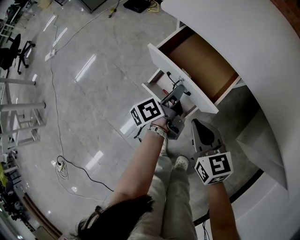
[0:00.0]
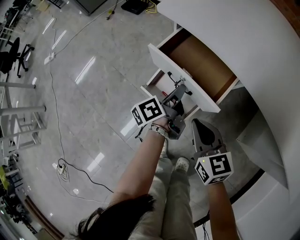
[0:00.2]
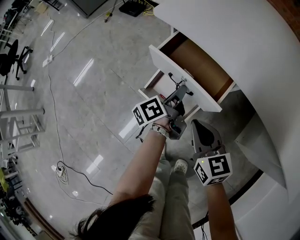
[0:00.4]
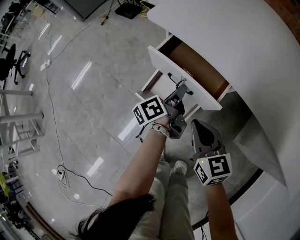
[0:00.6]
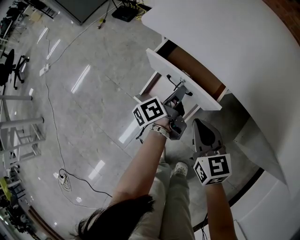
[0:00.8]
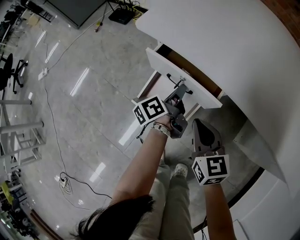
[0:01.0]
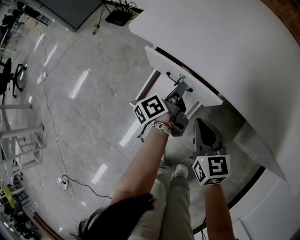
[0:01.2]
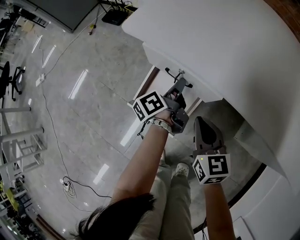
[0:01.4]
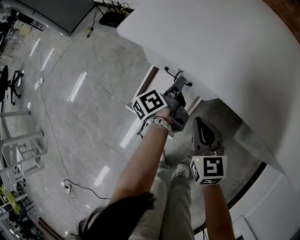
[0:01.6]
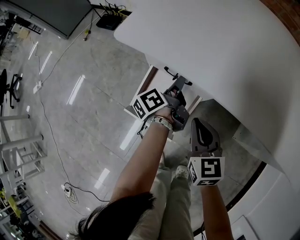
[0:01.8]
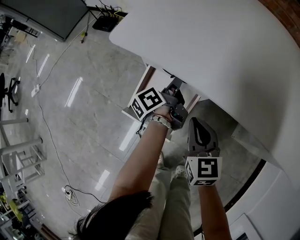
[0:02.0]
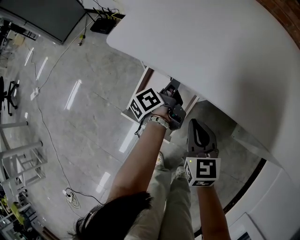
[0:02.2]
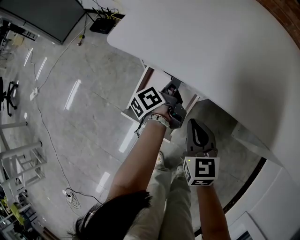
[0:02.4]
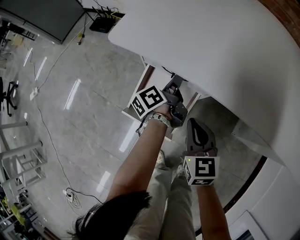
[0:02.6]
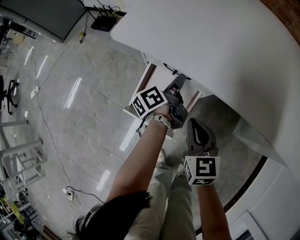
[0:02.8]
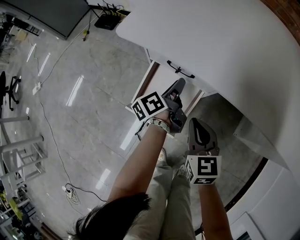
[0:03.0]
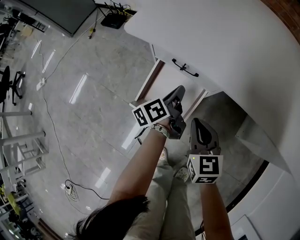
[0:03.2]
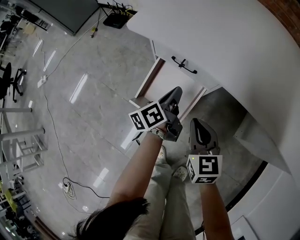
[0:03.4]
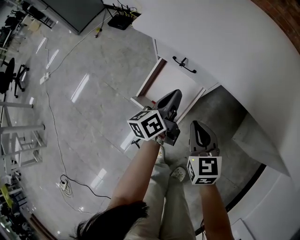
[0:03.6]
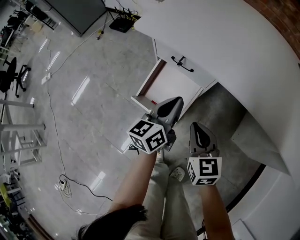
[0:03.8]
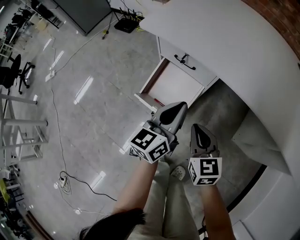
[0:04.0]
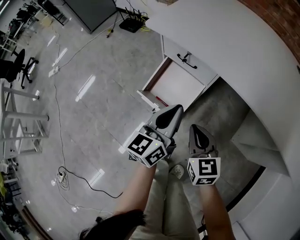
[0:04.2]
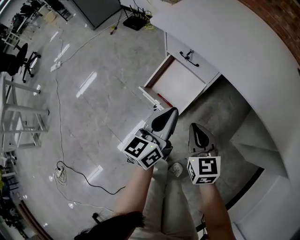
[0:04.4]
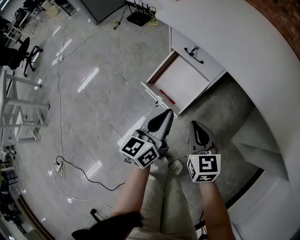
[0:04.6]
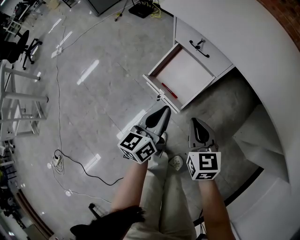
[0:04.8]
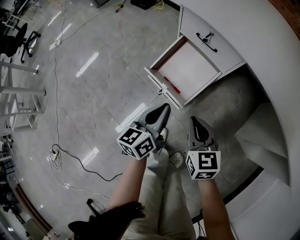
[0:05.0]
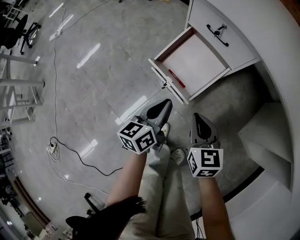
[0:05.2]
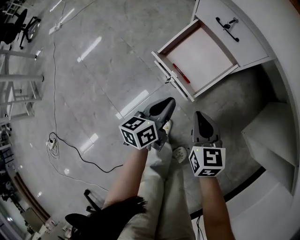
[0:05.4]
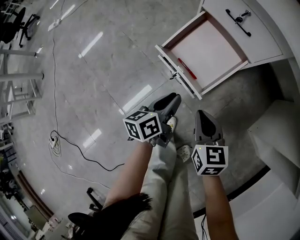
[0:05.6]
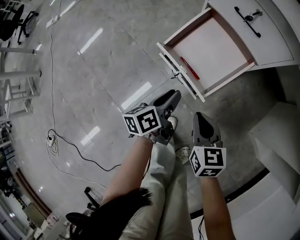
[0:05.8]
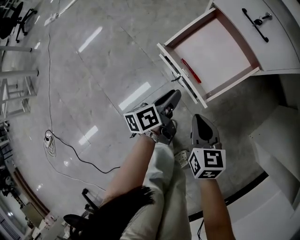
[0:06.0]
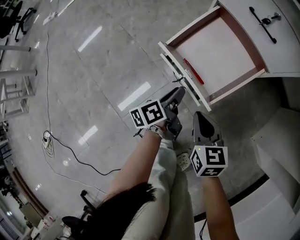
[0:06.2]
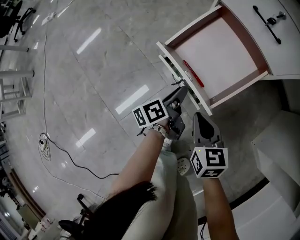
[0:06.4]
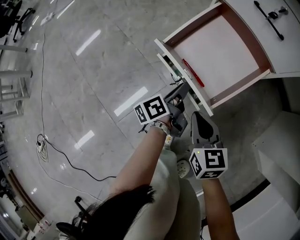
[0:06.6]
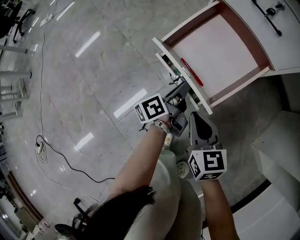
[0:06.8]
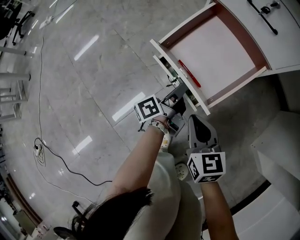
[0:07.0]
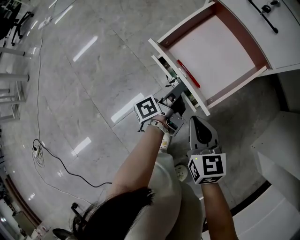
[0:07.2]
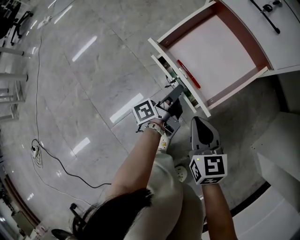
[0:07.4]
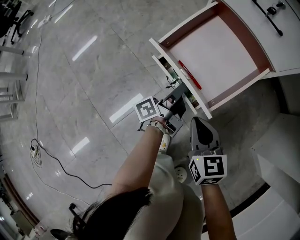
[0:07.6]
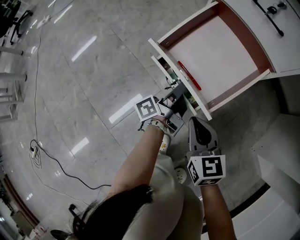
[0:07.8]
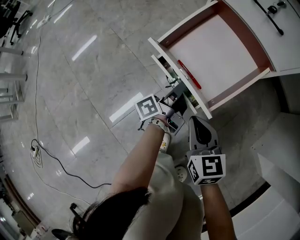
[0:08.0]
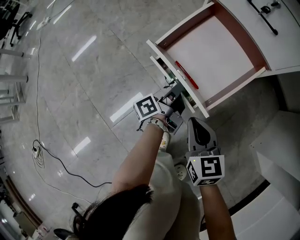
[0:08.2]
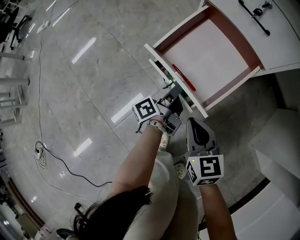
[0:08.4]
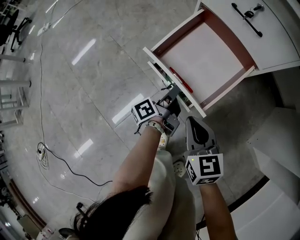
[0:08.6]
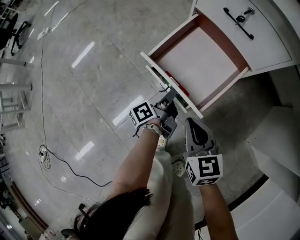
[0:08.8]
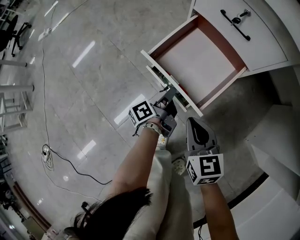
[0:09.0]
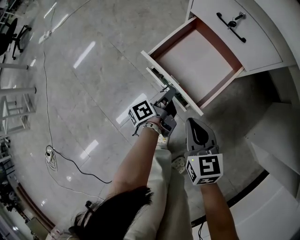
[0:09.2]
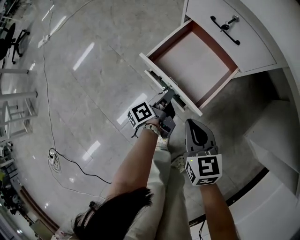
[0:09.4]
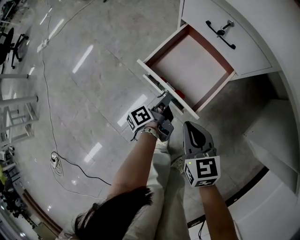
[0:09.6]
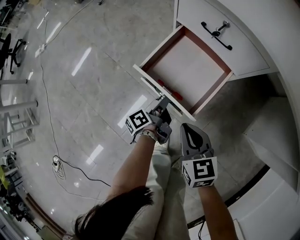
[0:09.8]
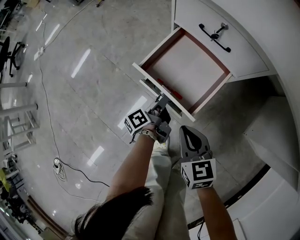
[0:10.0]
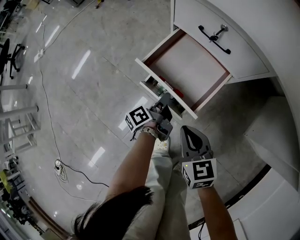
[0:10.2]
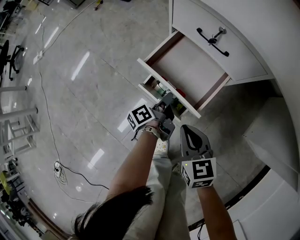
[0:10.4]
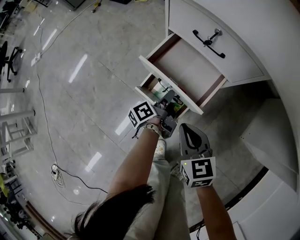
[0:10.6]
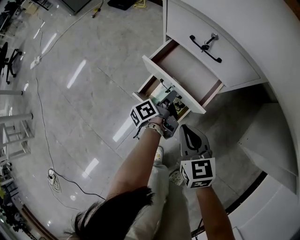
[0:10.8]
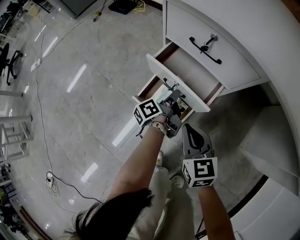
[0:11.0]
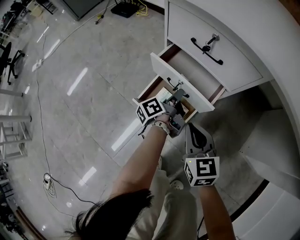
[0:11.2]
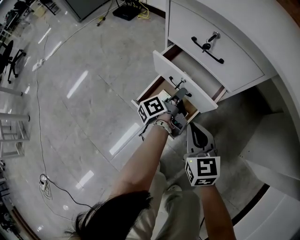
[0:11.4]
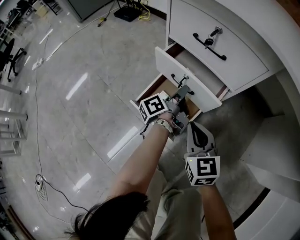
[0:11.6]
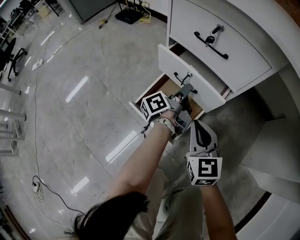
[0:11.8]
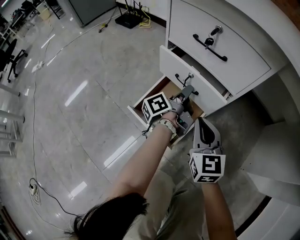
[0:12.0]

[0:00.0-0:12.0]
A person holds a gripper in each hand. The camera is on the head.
0:00.0 to 0:01.6: Both grippers move forward and to the right, roughly 15 cm.
0:01.6 to 0:03.0: The left gripper opens.
0:03.0 to 0:04.4: The left gripper goes some 30 cm backward and upward, rolls clockwise, seen from behind, by approximately 50 degrees, and closes; the right gripper heads backward, covering about 15 cm.
0:04.4 to 0:06.0: The grippers both shift downward by some 30 cm. The left gripper rotates around the line of its fingers by some 40 degrees, counterclockwise from behind, and opens its fingers.
0:06.0 to 0:07.6: The right gripper goes some 10 cm downward. Meanwhile the left gripper travels downward and forward by about 10 cm, and swivels about 30 degrees.
0:07.6 to 0:09.0: The right gripper shifts some 10 cm upward, while the left gripper heads upward, covering roughly 5 cm.
0:09.0 to 0:10.4: The left gripper travels forward by approximately 5 cm, while the right gripper shifts by approximately 5 cm.
0:10.4 to 0:12.0: The right gripper is displaced forward, to the right and downward by some 15 cm, and turns by roughly 30 degrees, while the left gripper heads forward and to the right, covering some 15 cm, and changes its angle by about 20 degrees.

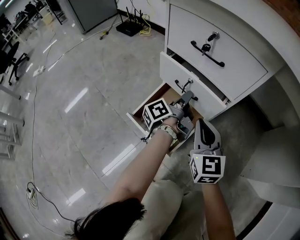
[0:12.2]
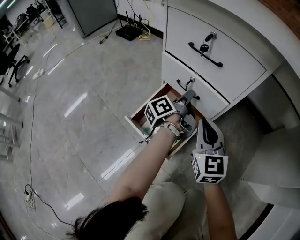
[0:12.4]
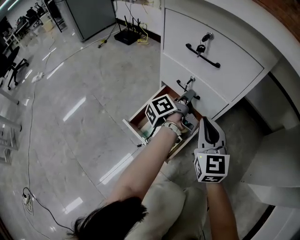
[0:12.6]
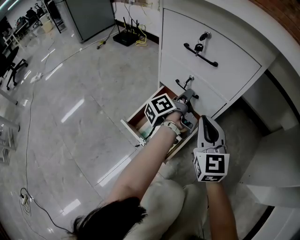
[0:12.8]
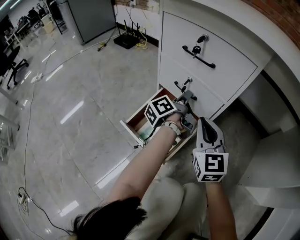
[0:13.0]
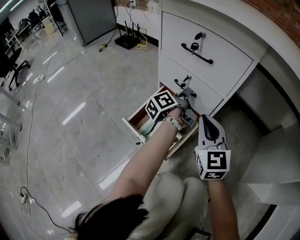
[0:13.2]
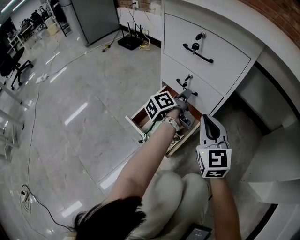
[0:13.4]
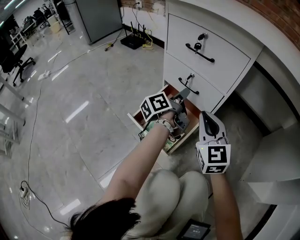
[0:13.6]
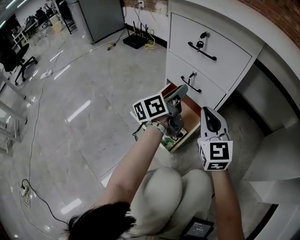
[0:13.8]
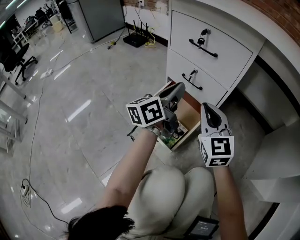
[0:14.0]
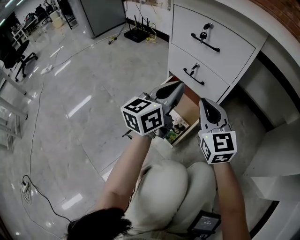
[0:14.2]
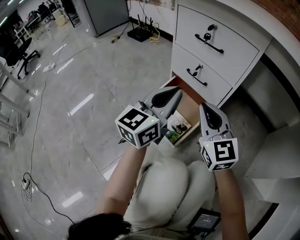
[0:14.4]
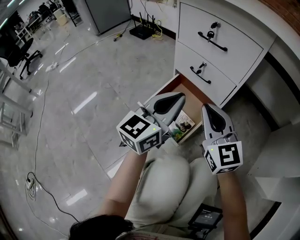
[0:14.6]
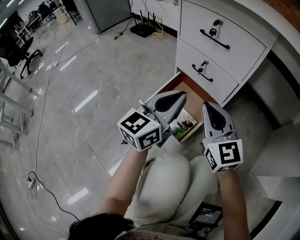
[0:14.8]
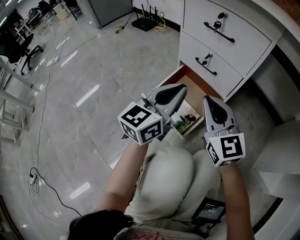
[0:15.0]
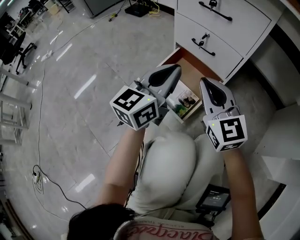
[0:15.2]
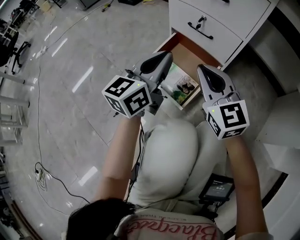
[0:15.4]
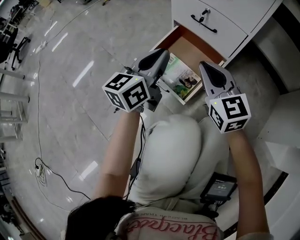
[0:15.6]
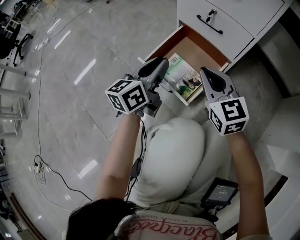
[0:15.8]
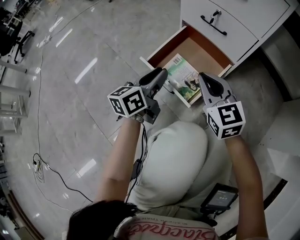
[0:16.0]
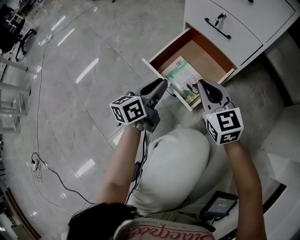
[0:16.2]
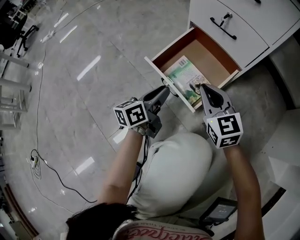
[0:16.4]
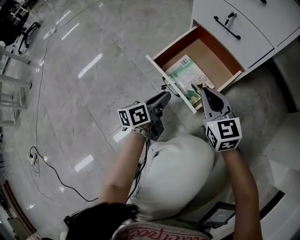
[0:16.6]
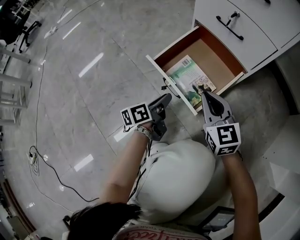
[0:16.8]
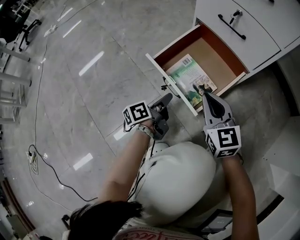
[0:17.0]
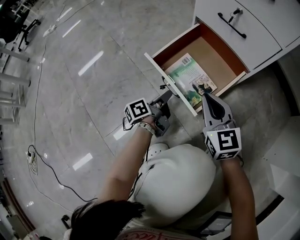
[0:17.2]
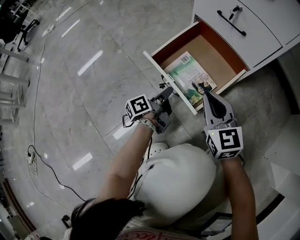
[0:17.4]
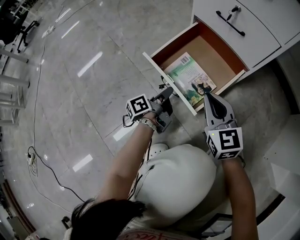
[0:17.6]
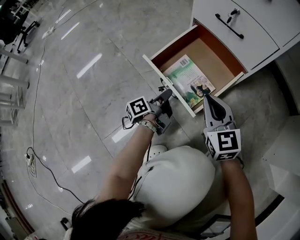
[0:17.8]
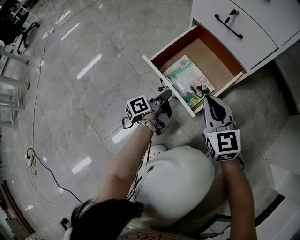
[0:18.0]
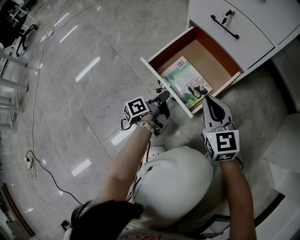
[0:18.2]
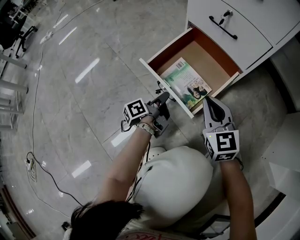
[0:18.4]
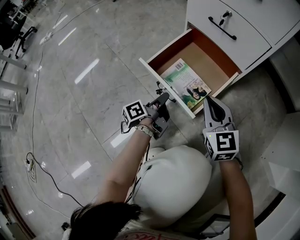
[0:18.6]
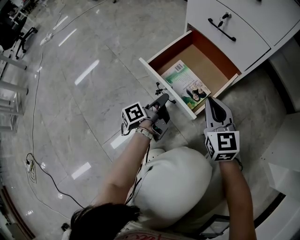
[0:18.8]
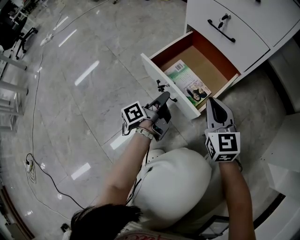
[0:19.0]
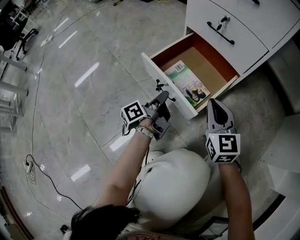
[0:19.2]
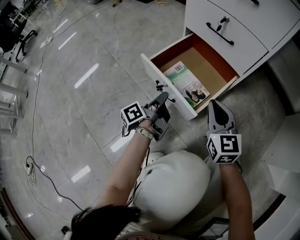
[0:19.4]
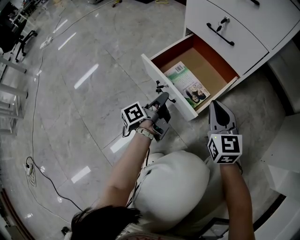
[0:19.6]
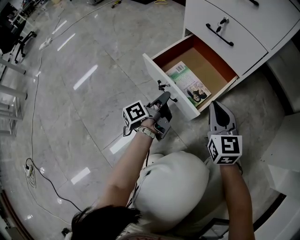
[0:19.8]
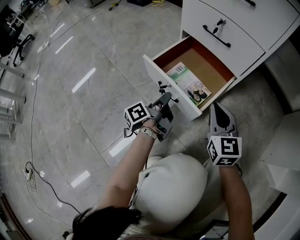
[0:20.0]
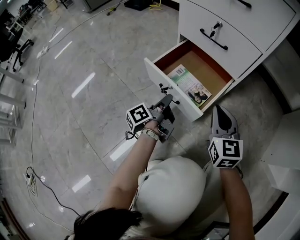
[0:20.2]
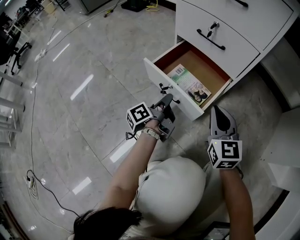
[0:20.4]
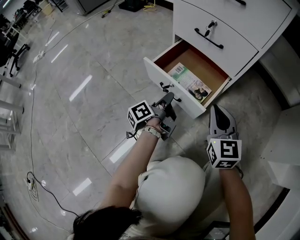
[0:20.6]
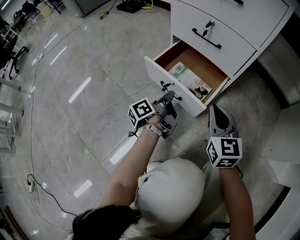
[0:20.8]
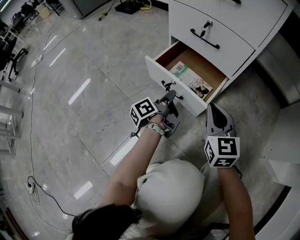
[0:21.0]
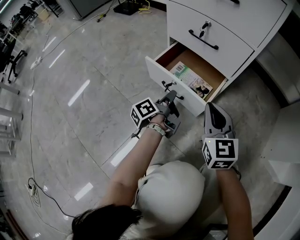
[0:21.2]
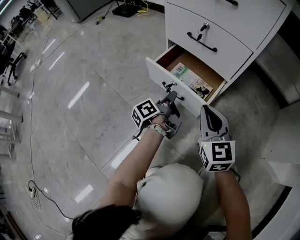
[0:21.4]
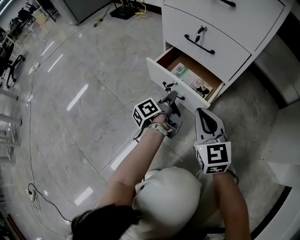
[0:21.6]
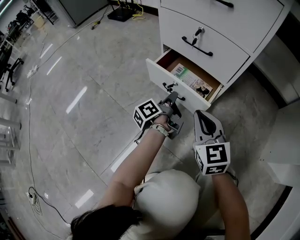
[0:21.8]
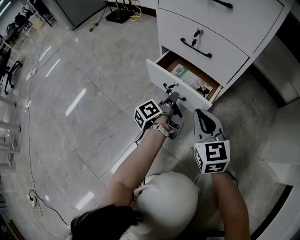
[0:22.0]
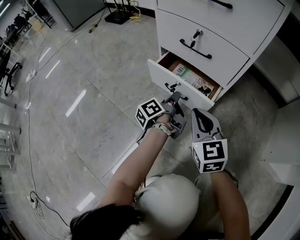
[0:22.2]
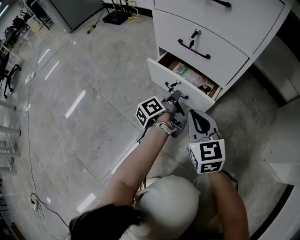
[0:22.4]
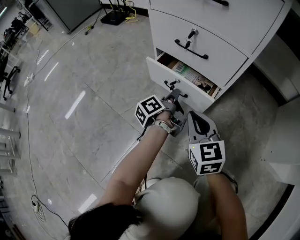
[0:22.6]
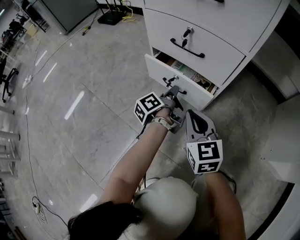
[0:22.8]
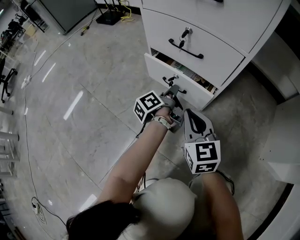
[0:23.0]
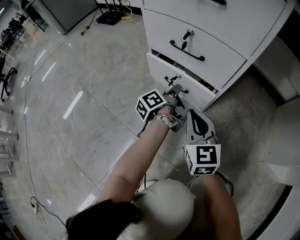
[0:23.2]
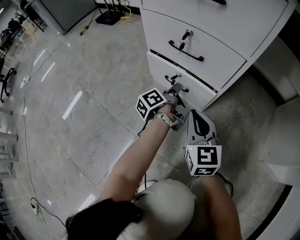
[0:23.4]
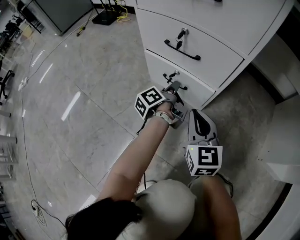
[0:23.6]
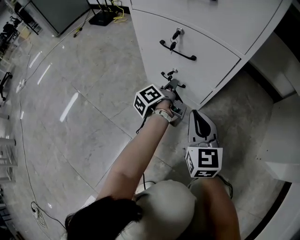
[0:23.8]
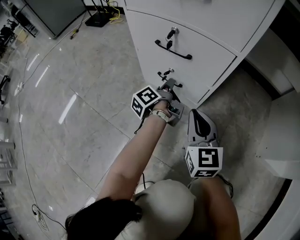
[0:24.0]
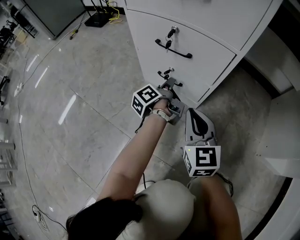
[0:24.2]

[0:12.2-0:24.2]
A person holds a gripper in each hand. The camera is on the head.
0:12.2 to 0:13.8: The left gripper travels upward by approximately 5 cm, and turns by about 30 degrees.
0:13.8 to 0:15.2: The right gripper is displaced to the left by roughly 5 cm. Meanwhile the left gripper heads backward, covering about 10 cm, and twists some 40 degrees clockwise, seen from behind.
0:15.2 to 0:16.6: The left gripper moves downward, some 30 cm, rotates around the line of its fingers by approximately 40 degrees, counterclockwise from behind, and opens its fingers. Meanwhile the right gripper is displaced downward by approximately 15 cm.
0:16.6 to 0:18.2: The left gripper travels downward by approximately 5 cm, and changes its angle by roughly 30 degrees.
0:18.2 to 0:19.8: The left gripper moves upward, roughly 5 cm.
0:19.8 to 0:21.2: The left gripper travels forward and to the right by roughly 10 cm.
0:21.2 to 0:22.6: The left gripper moves forward, about 5 cm. The right gripper ends up approximately 5 cm from where it was.
0:22.6 to 0:24.2: The left gripper goes roughly 5 cm forward.
